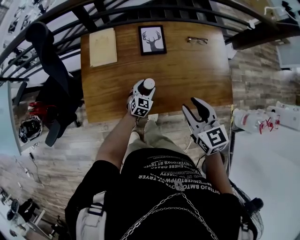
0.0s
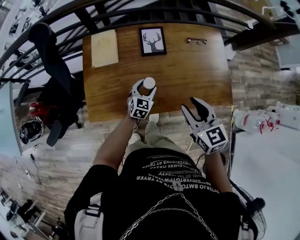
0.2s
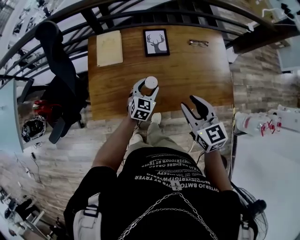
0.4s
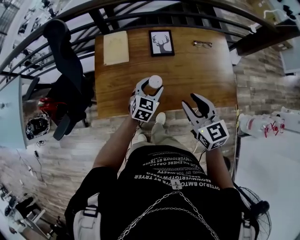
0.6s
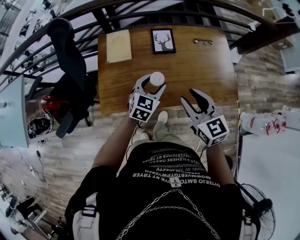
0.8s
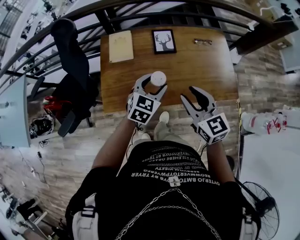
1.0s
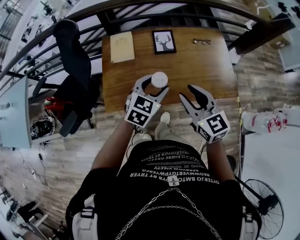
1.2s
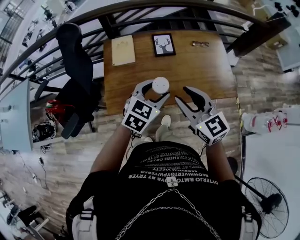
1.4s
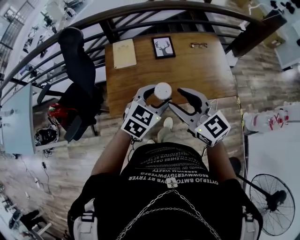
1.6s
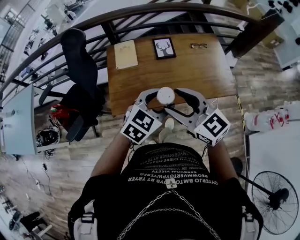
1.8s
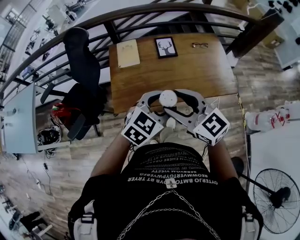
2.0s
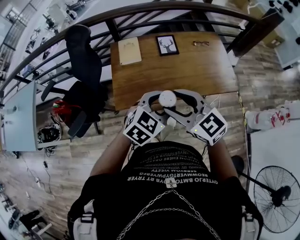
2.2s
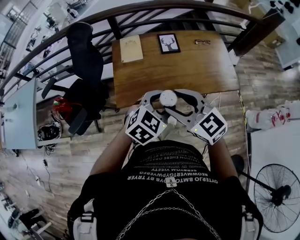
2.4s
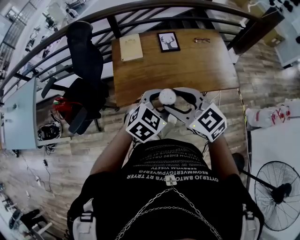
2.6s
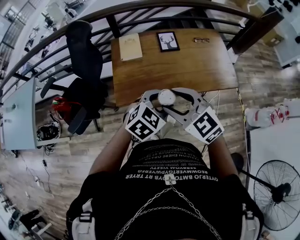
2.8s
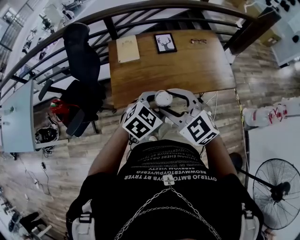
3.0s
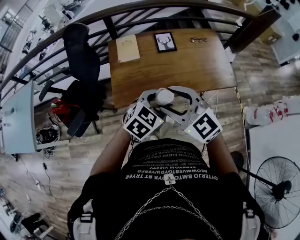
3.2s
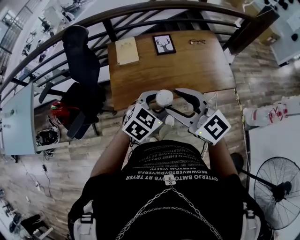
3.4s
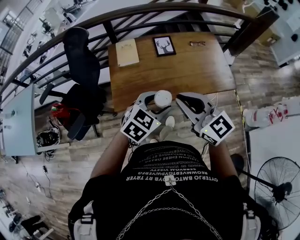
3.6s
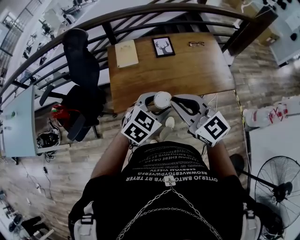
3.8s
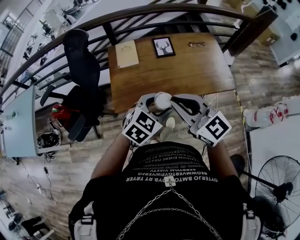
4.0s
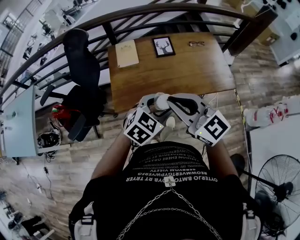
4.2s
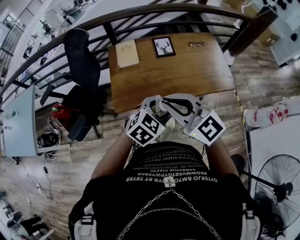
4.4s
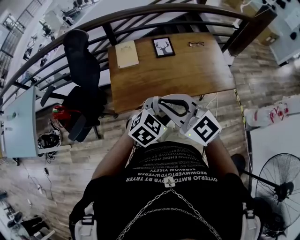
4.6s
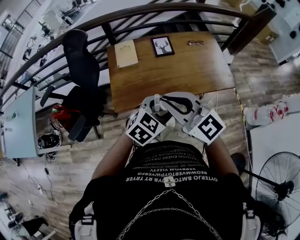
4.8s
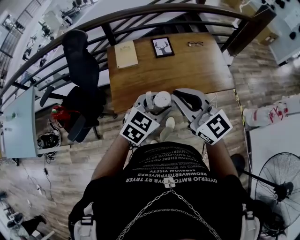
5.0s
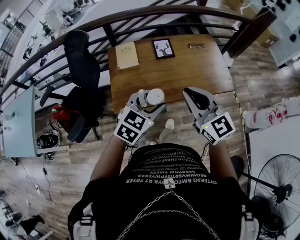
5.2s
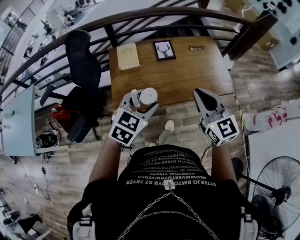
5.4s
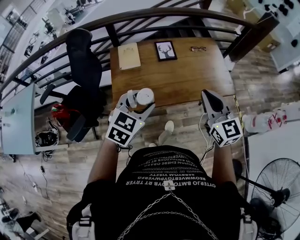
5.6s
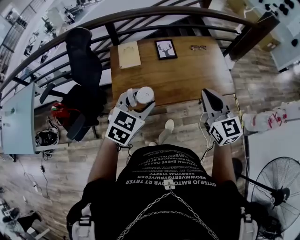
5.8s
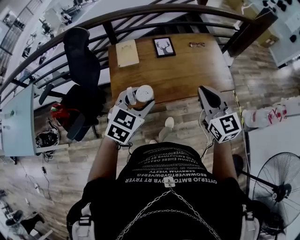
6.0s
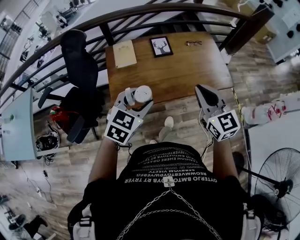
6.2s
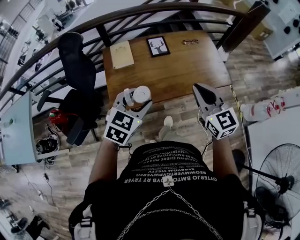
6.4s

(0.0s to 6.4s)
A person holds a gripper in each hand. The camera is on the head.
0.0s - 1.6s: The left gripper travels upward and backward by about 40 cm. Meanwhile the right gripper is displaced upward, to the left and backward by approximately 25 cm, and rotates about 20 degrees.
1.6s - 3.2s: The right gripper shifts approximately 10 cm to the left and backward, while the left gripper heads backward, covering about 10 cm.
3.2s - 4.8s: The right gripper closes.
4.8s - 6.4s: The left gripper is displaced to the left by some 10 cm, while the right gripper shifts about 15 cm to the right and forward, and rotates approximately 30 degrees.

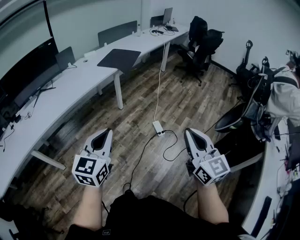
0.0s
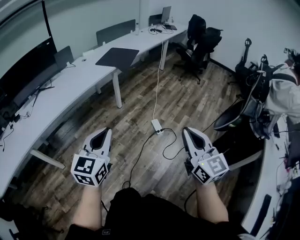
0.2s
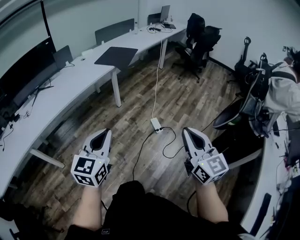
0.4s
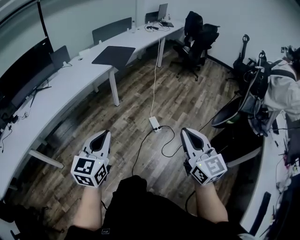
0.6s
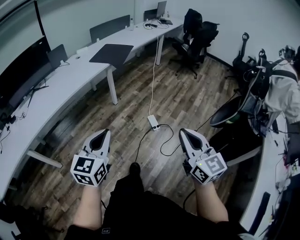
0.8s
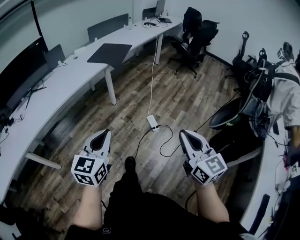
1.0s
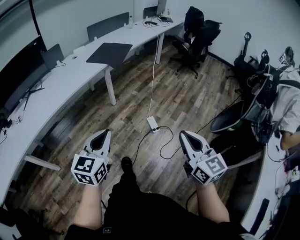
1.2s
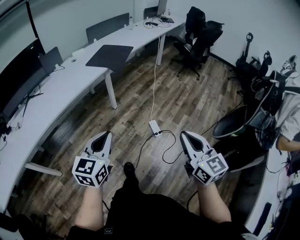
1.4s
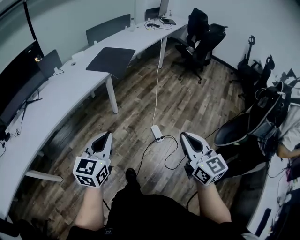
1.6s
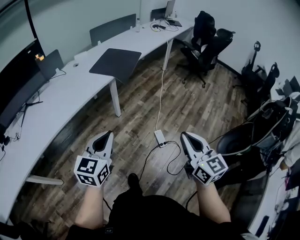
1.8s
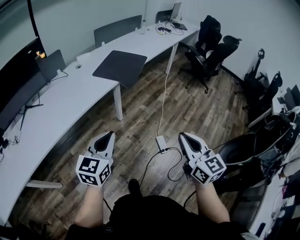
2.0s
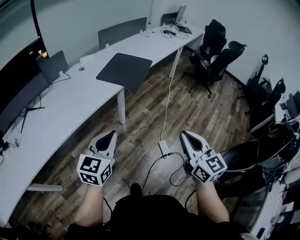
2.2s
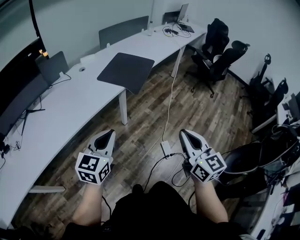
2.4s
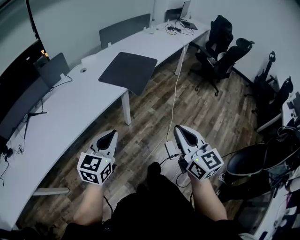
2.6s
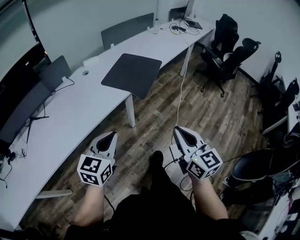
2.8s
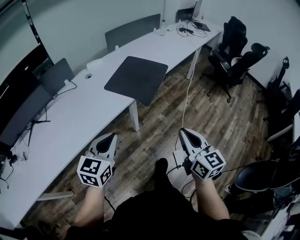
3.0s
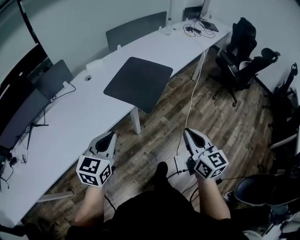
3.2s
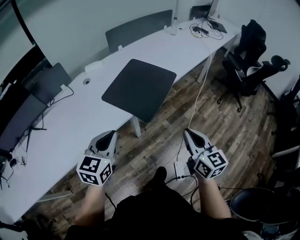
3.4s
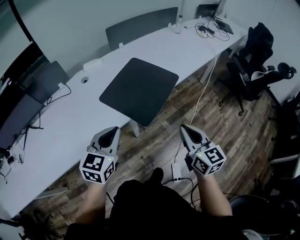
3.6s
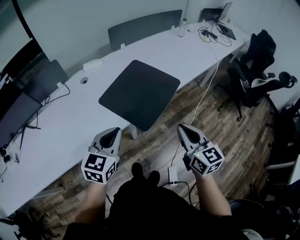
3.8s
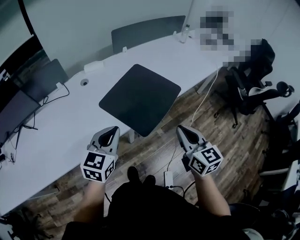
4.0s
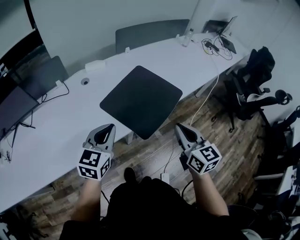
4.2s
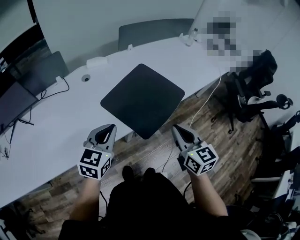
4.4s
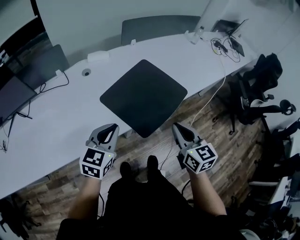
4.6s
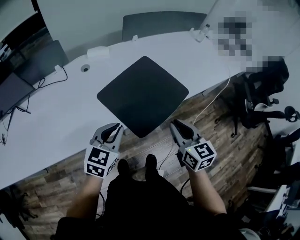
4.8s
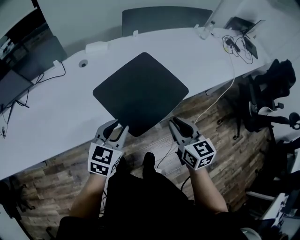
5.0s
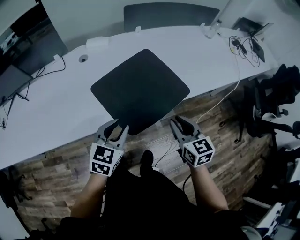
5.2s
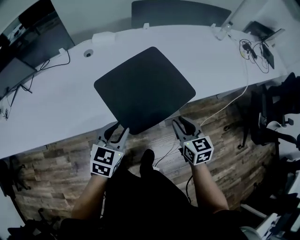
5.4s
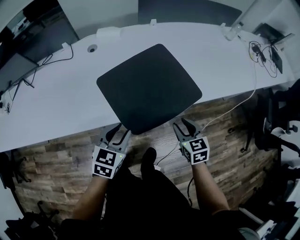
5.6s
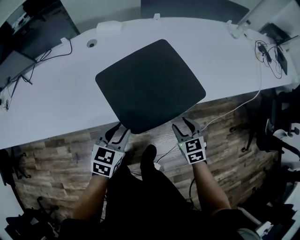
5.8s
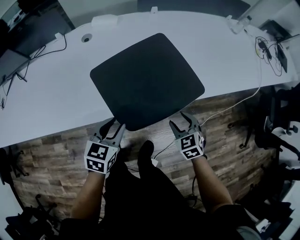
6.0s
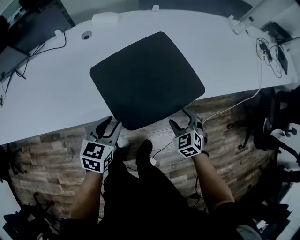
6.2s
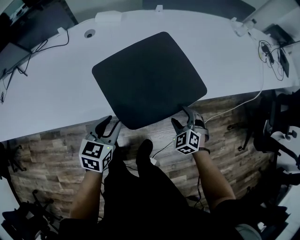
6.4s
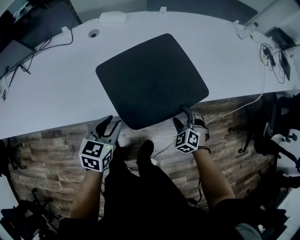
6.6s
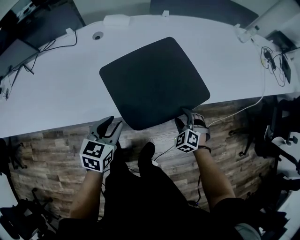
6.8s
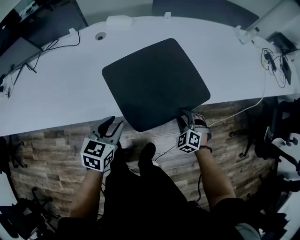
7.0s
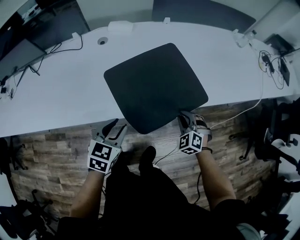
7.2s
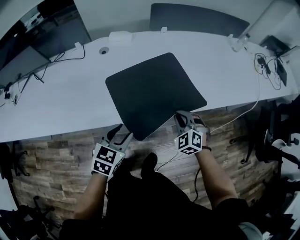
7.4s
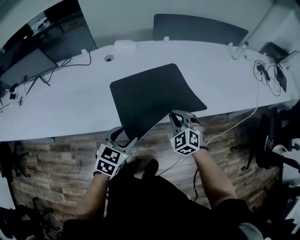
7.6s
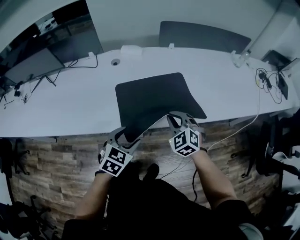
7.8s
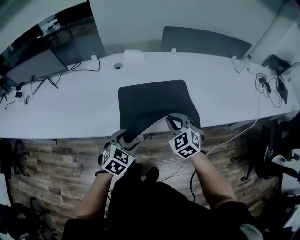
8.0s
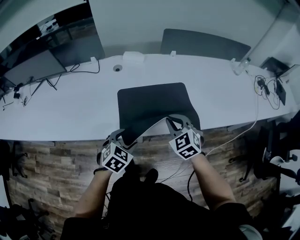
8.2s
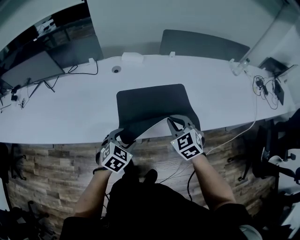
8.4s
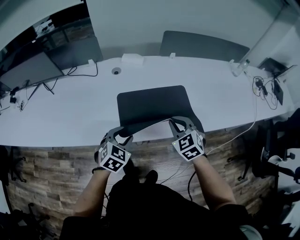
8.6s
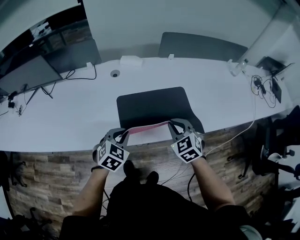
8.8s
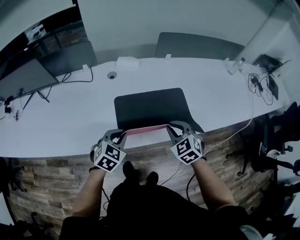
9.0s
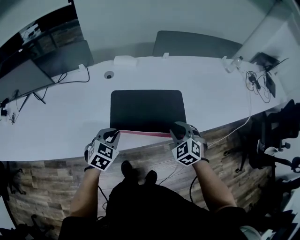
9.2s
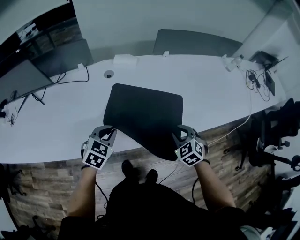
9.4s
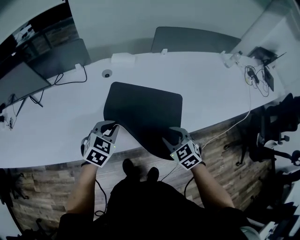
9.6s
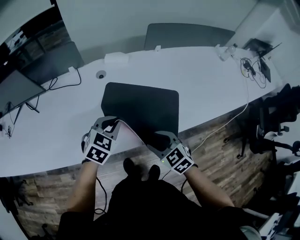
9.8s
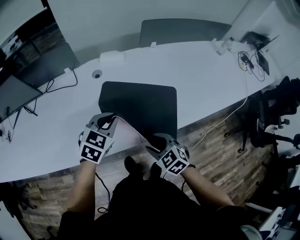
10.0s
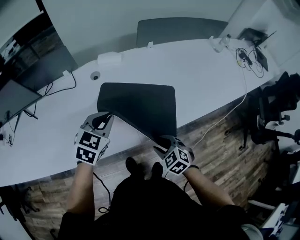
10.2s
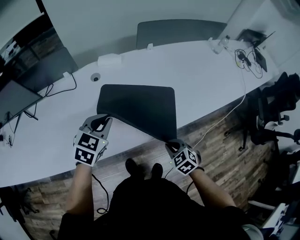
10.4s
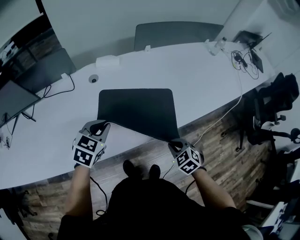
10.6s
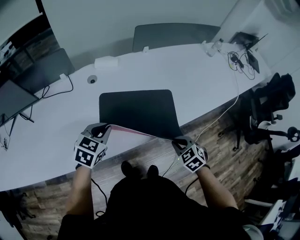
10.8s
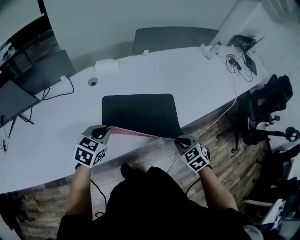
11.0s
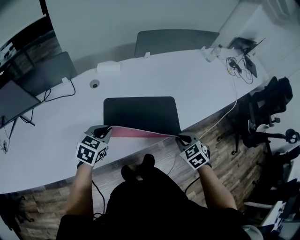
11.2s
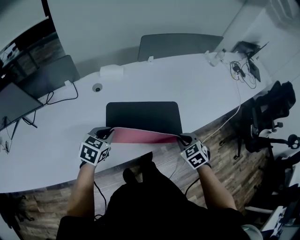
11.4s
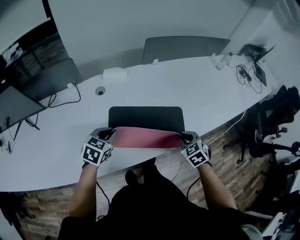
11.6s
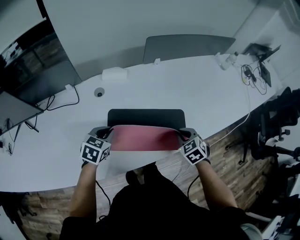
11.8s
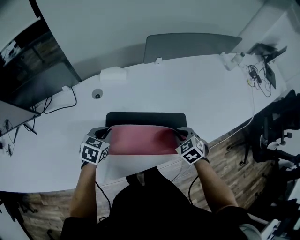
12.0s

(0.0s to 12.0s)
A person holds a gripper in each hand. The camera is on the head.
0.0s - 1.6s: The grippers both shift forward by about 20 cm.
1.6s - 3.0s: Both grippers travel together forward, roughly 40 cm.
3.0s - 4.4s: The grippers both shift forward by approximately 35 cm.
4.4s - 6.0s: The right gripper moves downward, to the right and forward, approximately 30 cm, rotates about 40 degrees, and opens. The left gripper moves downward and to the right, roughly 20 cm, swivels approximately 30 degrees, and opens up.
6.0s - 7.6s: The left gripper goes approximately 5 cm upward, and opens its fingers. Meanwhile the right gripper heads upward and to the left, covering about 15 cm, turns by some 30 degrees, and closes up.
7.6s - 9.0s: The left gripper travels forward and to the left by about 15 cm, and closes. Meanwhile the right gripper goes approximately 5 cm to the left.
9.0s - 10.4s: The right gripper travels downward and backward by about 15 cm, reaches some 10 cm to the left, then returns, changes its angle by some 20 degrees, and opens and closes again; the left gripper travels forward and upward by some 10 cm.
10.4s - 12.0s: The right gripper is displaced forward by some 20 cm. The left gripper travels downward and forward by some 15 cm.

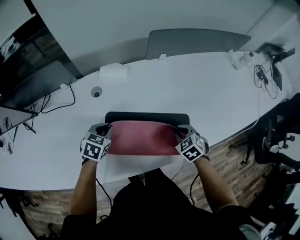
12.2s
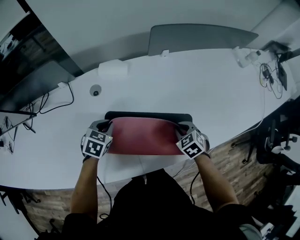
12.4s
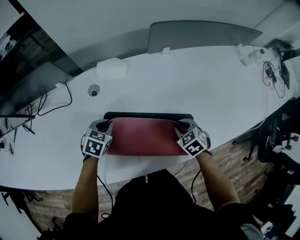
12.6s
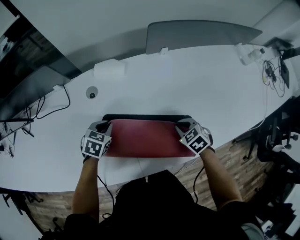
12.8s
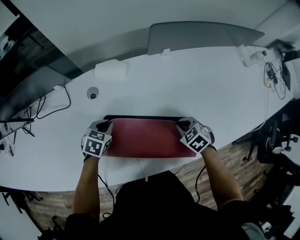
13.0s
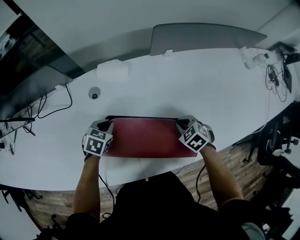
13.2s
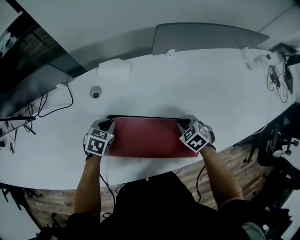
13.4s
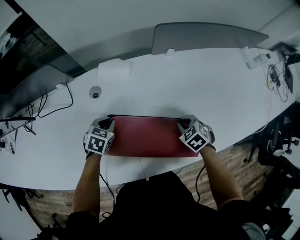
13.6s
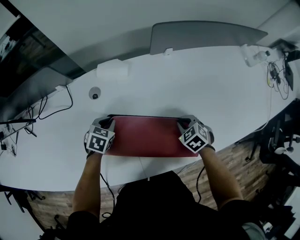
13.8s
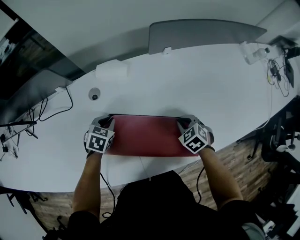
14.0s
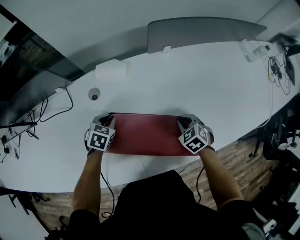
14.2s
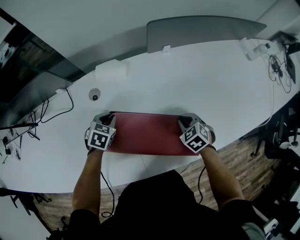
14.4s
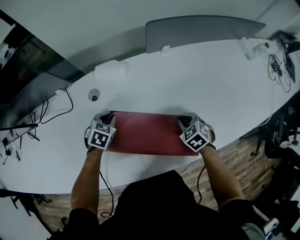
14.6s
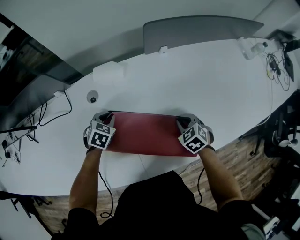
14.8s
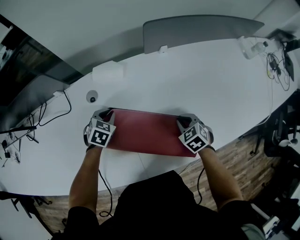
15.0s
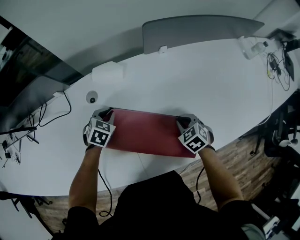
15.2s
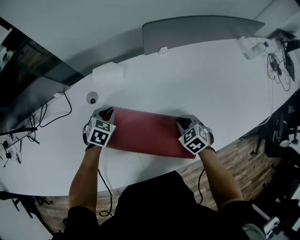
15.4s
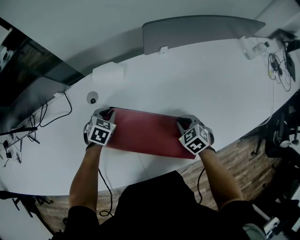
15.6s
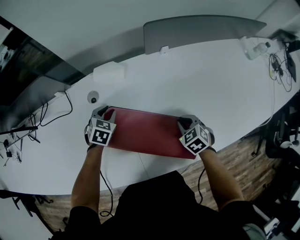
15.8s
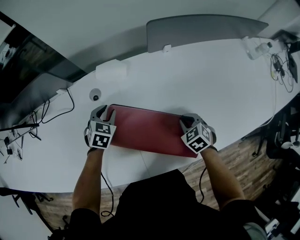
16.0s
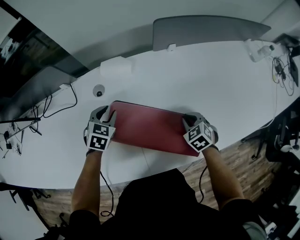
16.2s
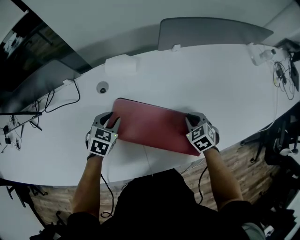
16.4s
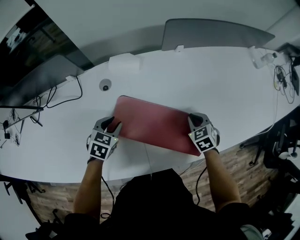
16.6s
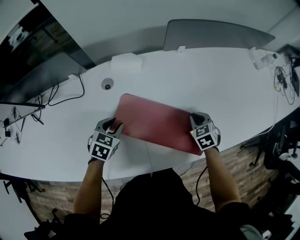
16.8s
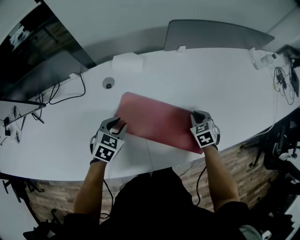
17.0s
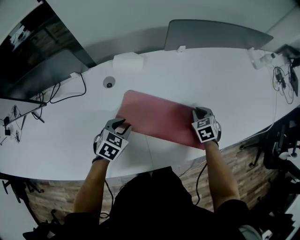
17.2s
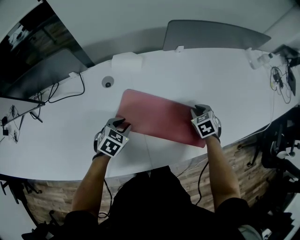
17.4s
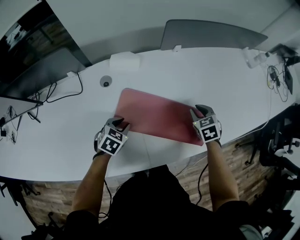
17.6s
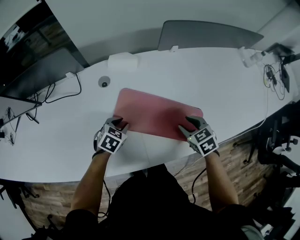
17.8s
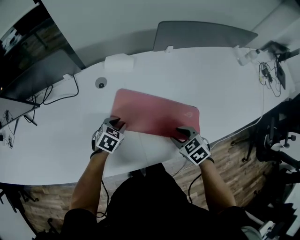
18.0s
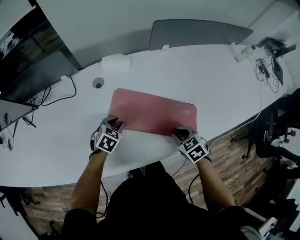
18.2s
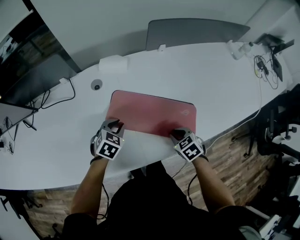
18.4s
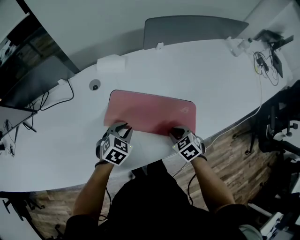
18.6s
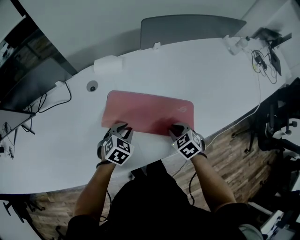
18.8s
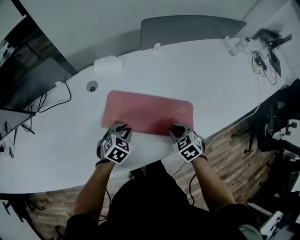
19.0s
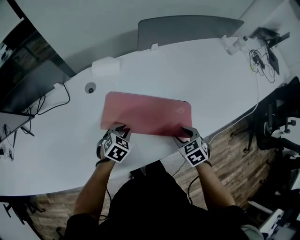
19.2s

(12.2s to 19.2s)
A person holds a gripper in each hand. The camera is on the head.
12.2s - 13.6s: The left gripper is displaced forward and downward by approximately 10 cm, while the right gripper moves forward, approximately 5 cm.
13.6s - 15.0s: The left gripper ends up some 5 cm from where it was.
15.0s - 16.4s: The left gripper moves backward, some 5 cm.
16.4s - 17.8s: The right gripper shifts some 10 cm backward and upward, and opens its fingers; the left gripper travels backward by approximately 5 cm.
17.8s - 19.2s: The left gripper moves to the right, about 5 cm. The right gripper moves backward, some 10 cm, and closes and opens again.
